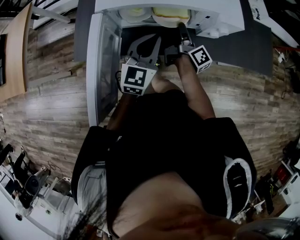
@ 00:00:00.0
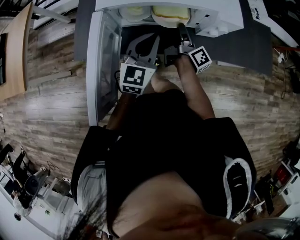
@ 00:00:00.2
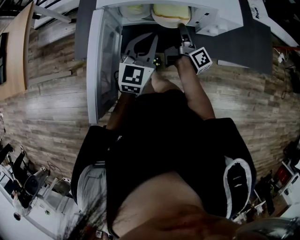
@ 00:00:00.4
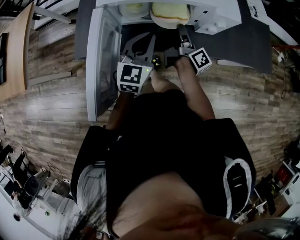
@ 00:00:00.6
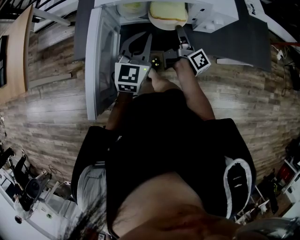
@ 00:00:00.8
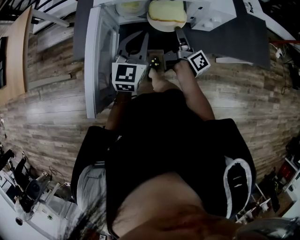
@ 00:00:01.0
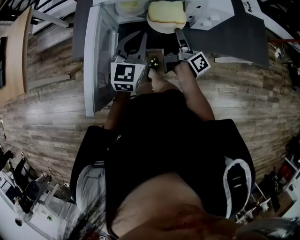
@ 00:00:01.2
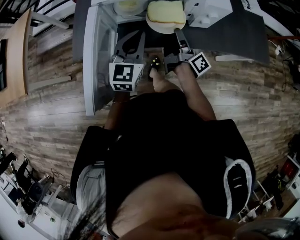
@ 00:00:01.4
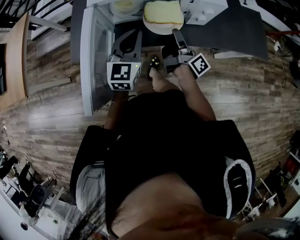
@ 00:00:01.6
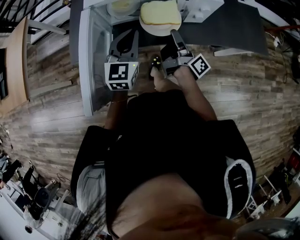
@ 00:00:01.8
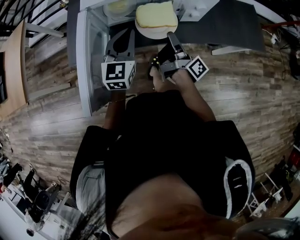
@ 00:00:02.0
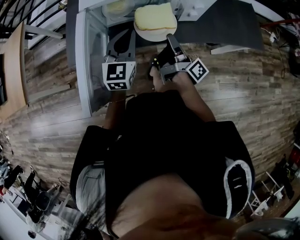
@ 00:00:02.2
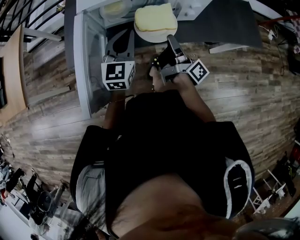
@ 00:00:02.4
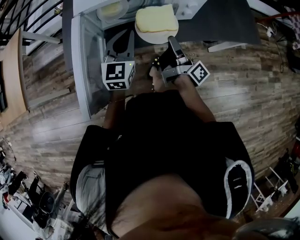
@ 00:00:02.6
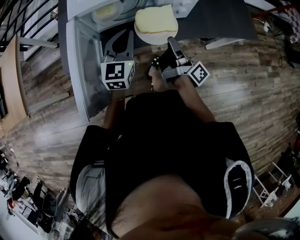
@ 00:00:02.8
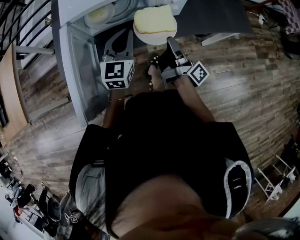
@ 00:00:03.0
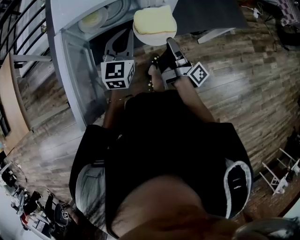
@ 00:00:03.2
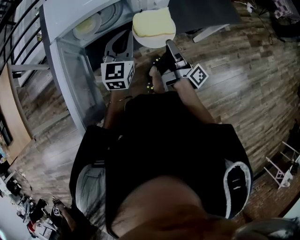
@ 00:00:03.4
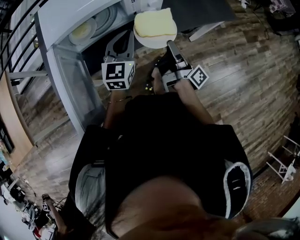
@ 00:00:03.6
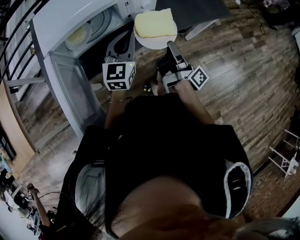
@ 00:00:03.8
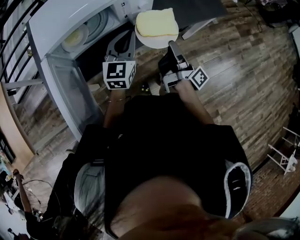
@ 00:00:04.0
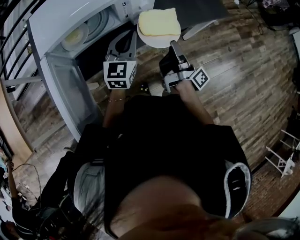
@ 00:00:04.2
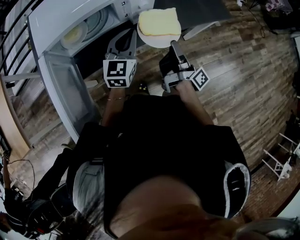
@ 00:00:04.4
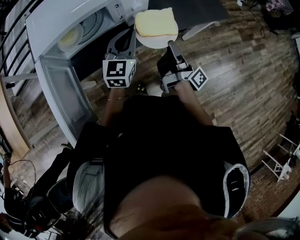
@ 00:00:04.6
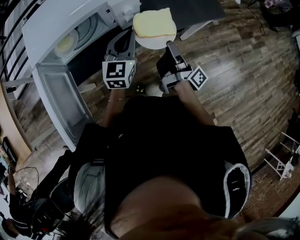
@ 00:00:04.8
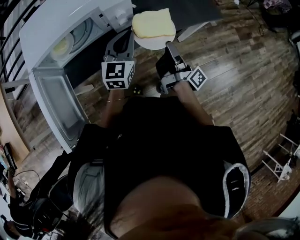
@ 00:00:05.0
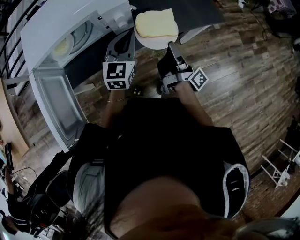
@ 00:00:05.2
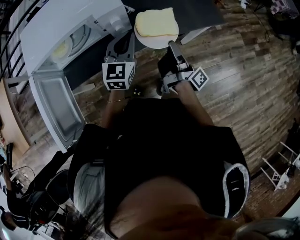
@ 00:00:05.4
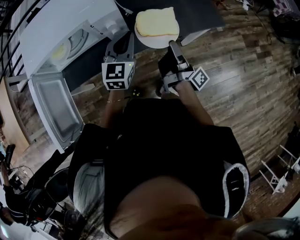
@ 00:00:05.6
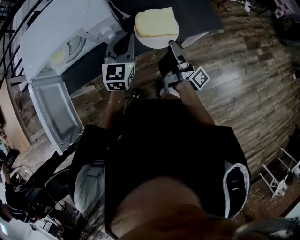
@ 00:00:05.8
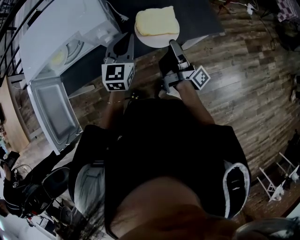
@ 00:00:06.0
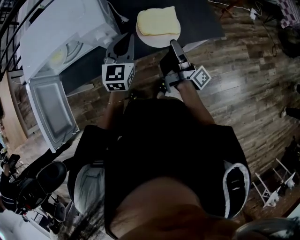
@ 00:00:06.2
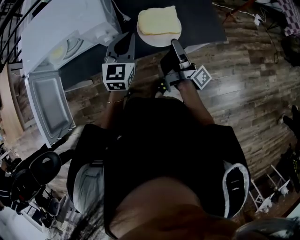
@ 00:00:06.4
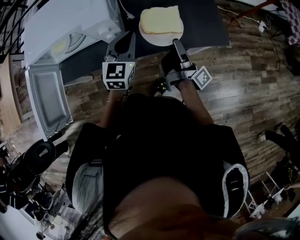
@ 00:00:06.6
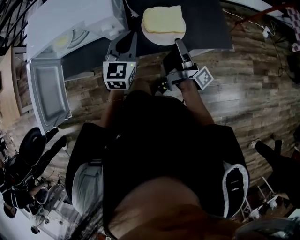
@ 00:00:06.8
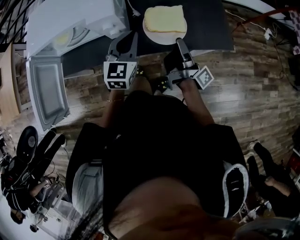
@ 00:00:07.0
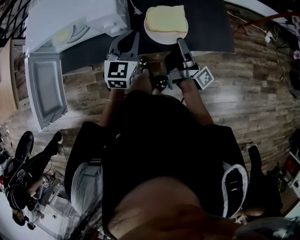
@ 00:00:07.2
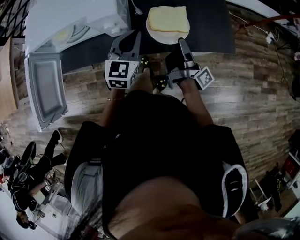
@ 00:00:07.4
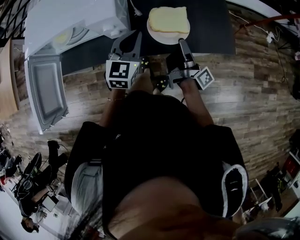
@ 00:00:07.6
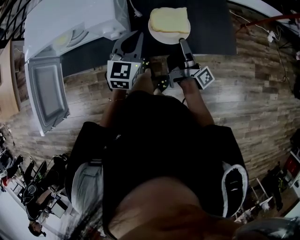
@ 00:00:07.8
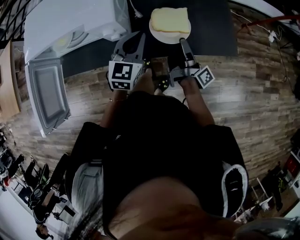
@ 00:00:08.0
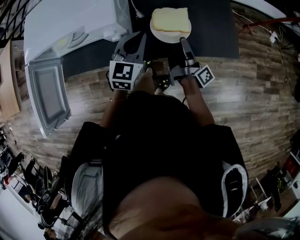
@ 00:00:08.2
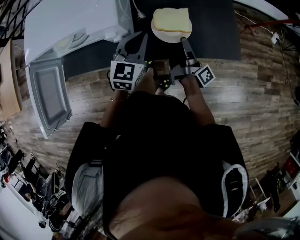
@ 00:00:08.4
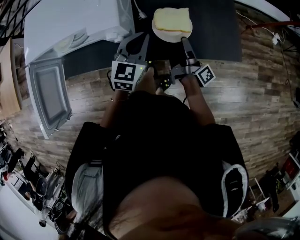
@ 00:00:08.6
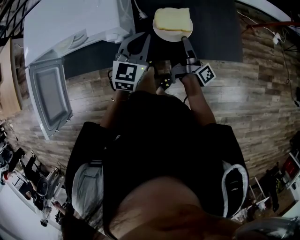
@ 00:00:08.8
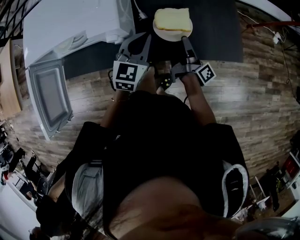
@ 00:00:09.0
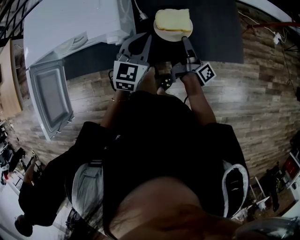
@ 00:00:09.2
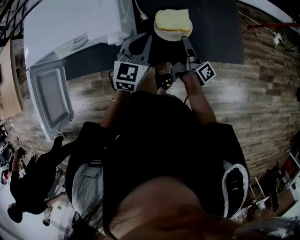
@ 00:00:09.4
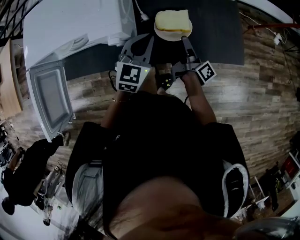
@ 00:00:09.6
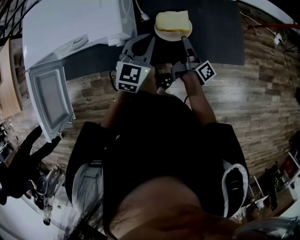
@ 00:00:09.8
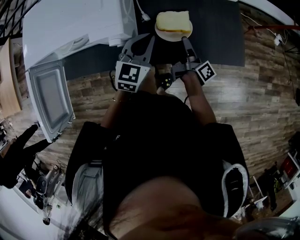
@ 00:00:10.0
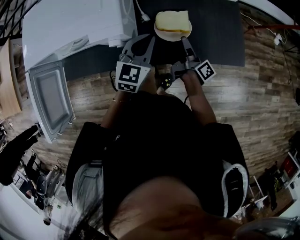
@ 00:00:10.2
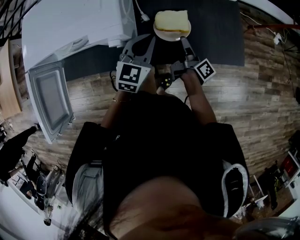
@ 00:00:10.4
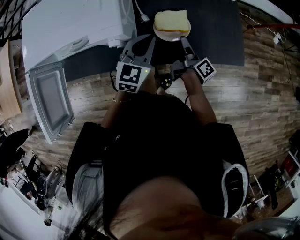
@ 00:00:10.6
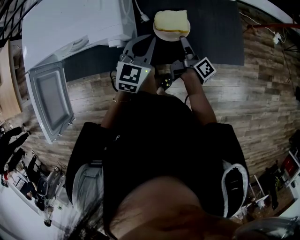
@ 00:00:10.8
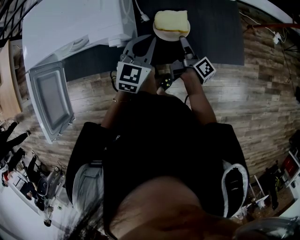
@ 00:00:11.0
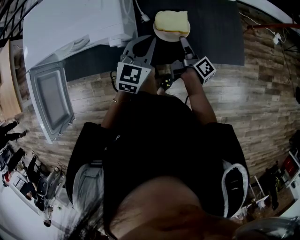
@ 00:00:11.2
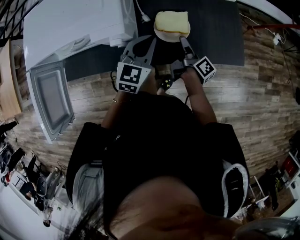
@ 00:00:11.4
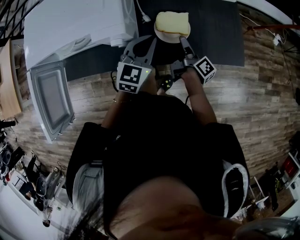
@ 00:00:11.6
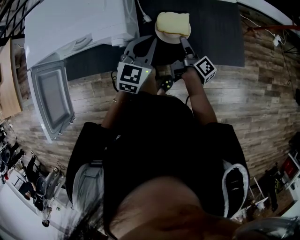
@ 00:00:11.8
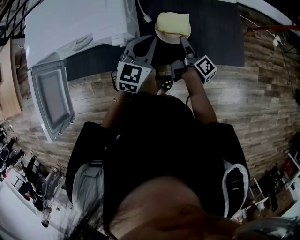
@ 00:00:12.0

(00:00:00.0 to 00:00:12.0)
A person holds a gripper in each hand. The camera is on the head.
00:00:00.0 - 00:00:01.6: The right gripper is displaced backward by some 10 cm.
00:00:01.6 - 00:00:03.0: The left gripper heads to the right, covering roughly 5 cm; the right gripper is displaced backward and to the right by about 10 cm.
00:00:03.0 - 00:00:04.4: Both grippers move to the right, approximately 10 cm.
00:00:04.4 - 00:00:06.0: Both grippers travel together to the right and forward, about 15 cm.
00:00:06.0 - 00:00:07.6: The right gripper is displaced forward by approximately 5 cm.
00:00:07.6 - 00:00:09.0: The right gripper travels downward and forward by approximately 10 cm.
00:00:09.0 - 00:00:10.4: The grippers make only small movements.
00:00:10.4 - 00:00:12.0: The right gripper opens up.

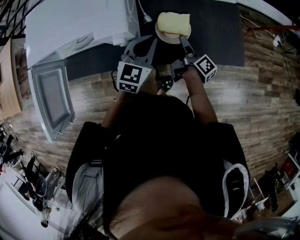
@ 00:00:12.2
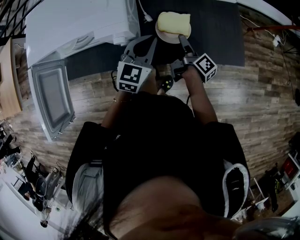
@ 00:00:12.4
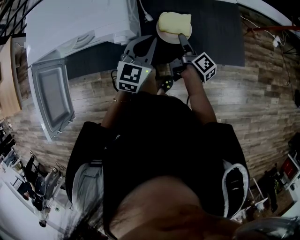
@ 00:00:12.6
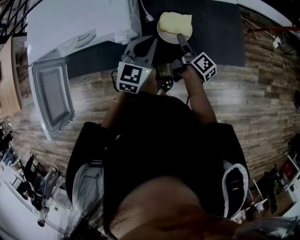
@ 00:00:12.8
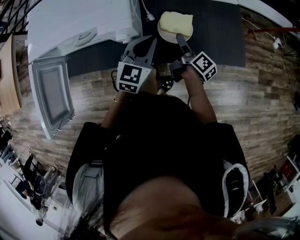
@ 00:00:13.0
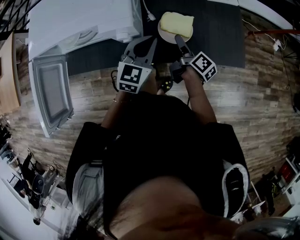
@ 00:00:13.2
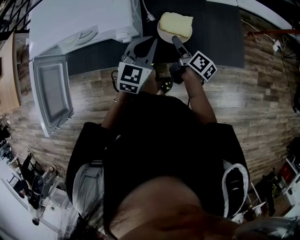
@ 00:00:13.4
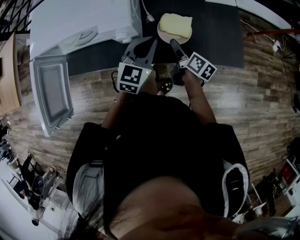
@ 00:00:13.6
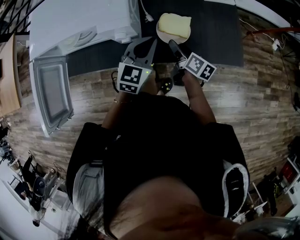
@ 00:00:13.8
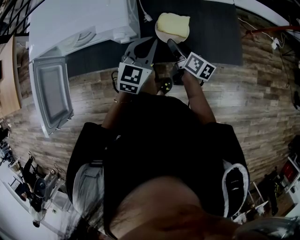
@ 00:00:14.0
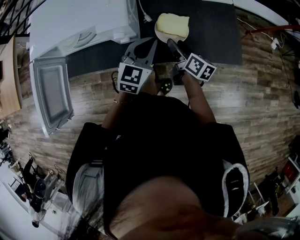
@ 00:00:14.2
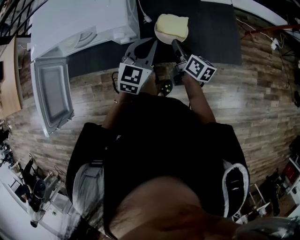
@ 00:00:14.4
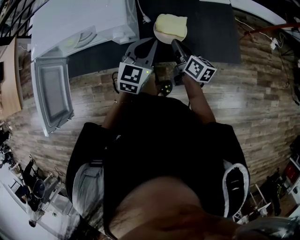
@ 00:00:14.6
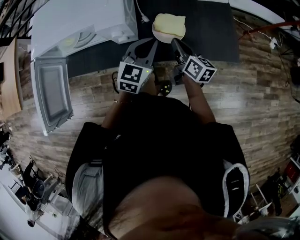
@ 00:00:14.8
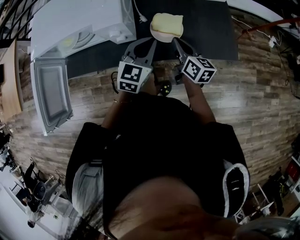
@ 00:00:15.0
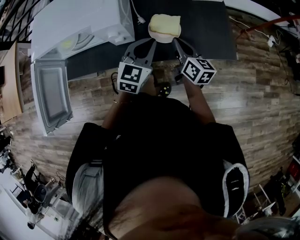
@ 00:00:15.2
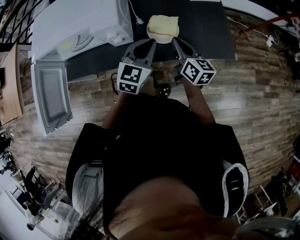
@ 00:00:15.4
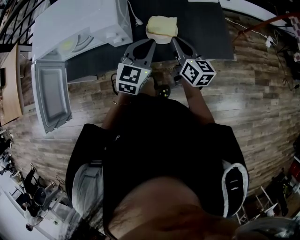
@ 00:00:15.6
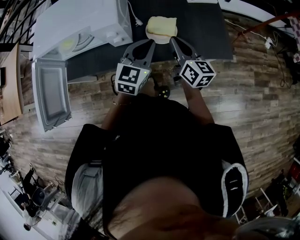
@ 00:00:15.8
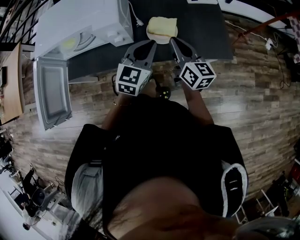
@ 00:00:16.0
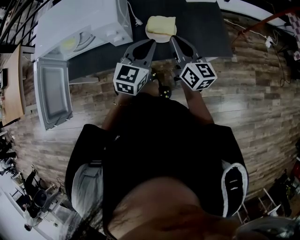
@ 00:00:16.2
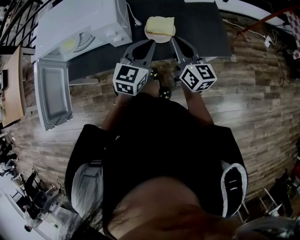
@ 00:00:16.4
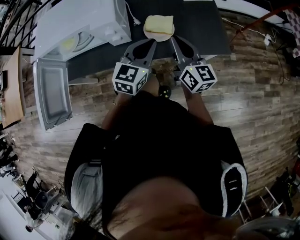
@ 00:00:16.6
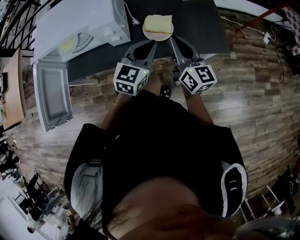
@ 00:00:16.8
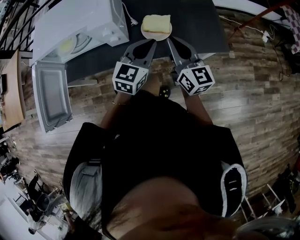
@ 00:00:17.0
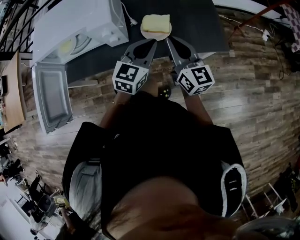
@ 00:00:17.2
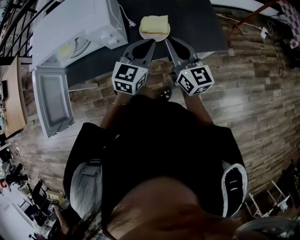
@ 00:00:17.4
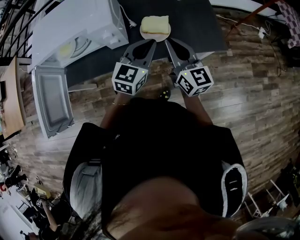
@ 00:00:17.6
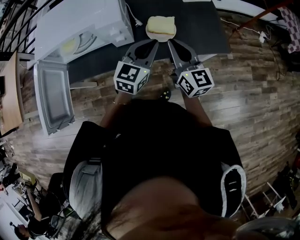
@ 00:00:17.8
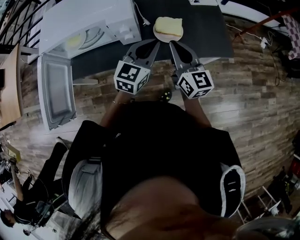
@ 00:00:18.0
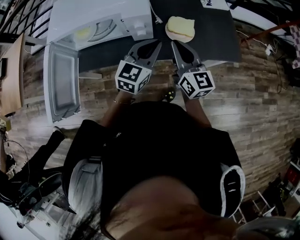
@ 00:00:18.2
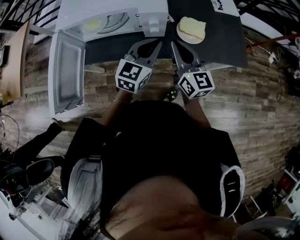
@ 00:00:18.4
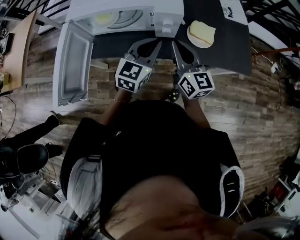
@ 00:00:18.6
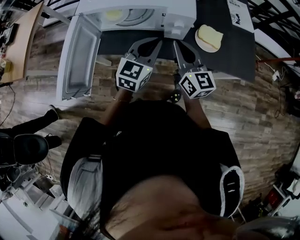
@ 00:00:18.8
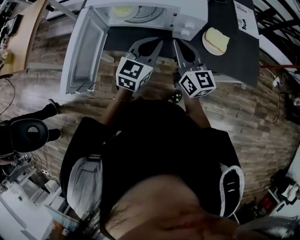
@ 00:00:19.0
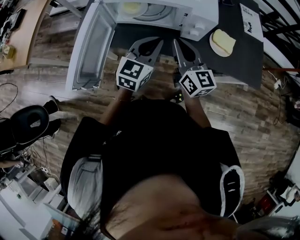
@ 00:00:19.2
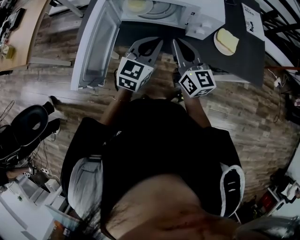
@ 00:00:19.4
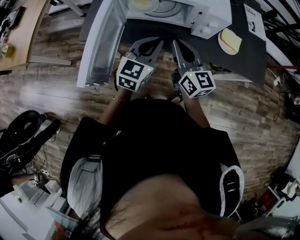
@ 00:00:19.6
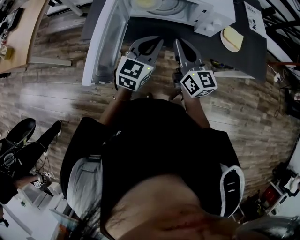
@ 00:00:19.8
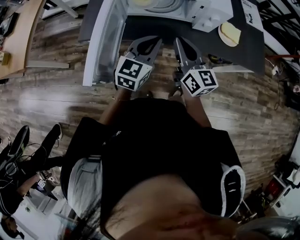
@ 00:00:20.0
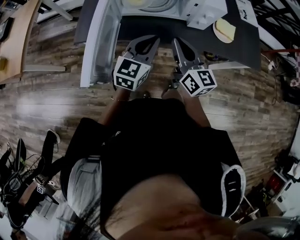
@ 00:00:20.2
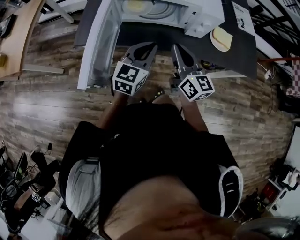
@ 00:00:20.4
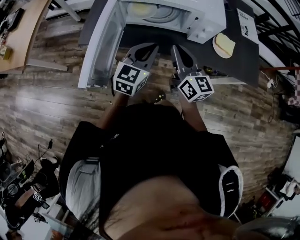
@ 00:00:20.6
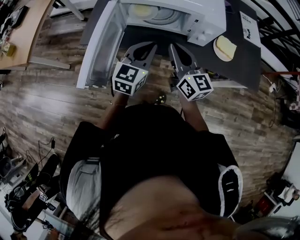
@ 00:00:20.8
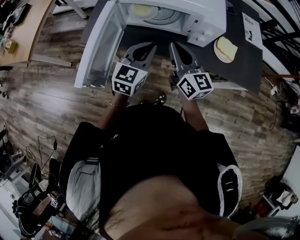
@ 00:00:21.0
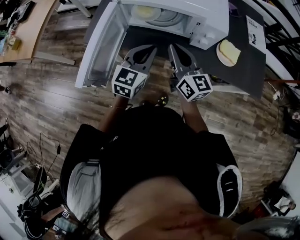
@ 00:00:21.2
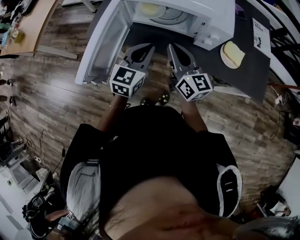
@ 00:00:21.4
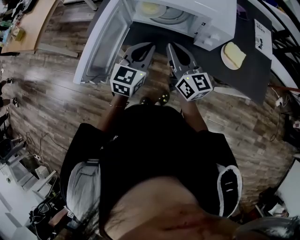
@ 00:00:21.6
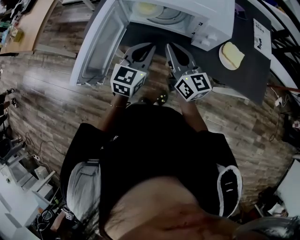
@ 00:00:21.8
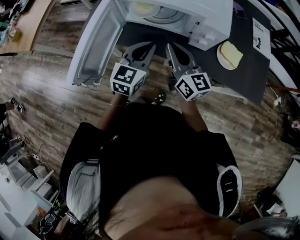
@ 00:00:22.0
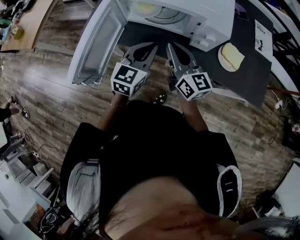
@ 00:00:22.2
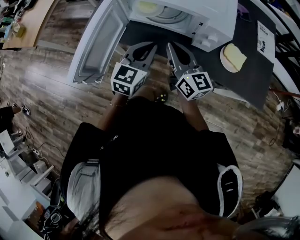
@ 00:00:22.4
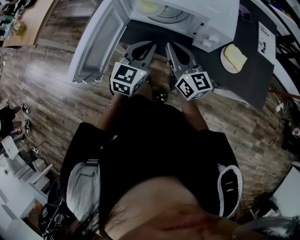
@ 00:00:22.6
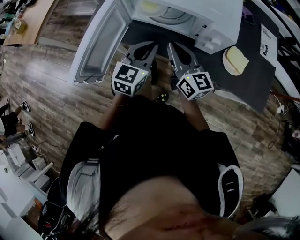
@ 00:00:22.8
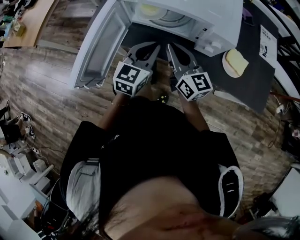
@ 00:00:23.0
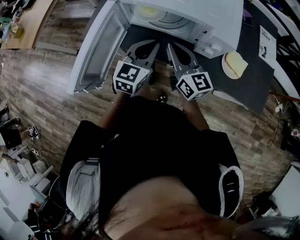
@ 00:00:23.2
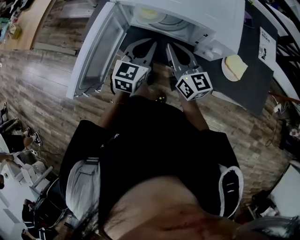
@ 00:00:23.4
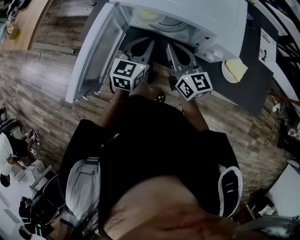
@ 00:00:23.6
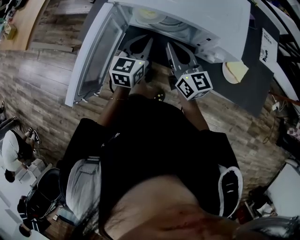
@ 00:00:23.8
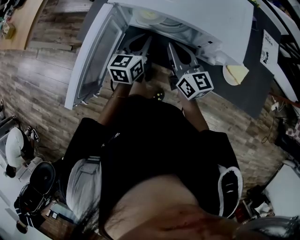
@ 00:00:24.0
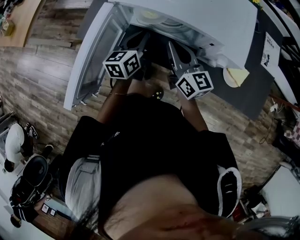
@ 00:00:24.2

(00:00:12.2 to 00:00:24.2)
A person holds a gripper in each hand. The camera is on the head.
00:00:12.2 - 00:00:13.8: The right gripper rotates roughly 40 degrees.
00:00:13.8 - 00:00:15.2: The right gripper heads upward, covering approximately 10 cm, changes its angle by roughly 20 degrees, and closes.
00:00:15.2 - 00:00:16.6: The right gripper heads upward, covering about 10 cm, and changes its angle by some 20 degrees. The left gripper ends up roughly 5 cm from where it was.
00:00:16.6 - 00:00:18.2: Both grippers move to the left, approximately 10 cm.
00:00:18.2 - 00:00:19.8: The grippers both shift to the left by some 25 cm.
00:00:19.8 - 00:00:22.6: The grippers move only a little.
00:00:22.6 - 00:00:24.2: The left gripper is displaced forward, downward and to the left by roughly 15 cm, and rotates about 30 degrees, while the right gripper moves forward, about 10 cm.
